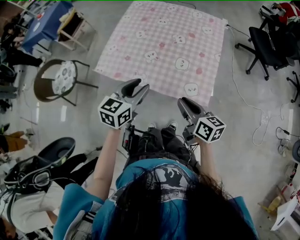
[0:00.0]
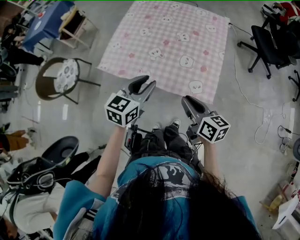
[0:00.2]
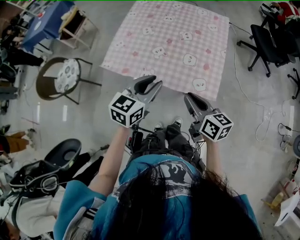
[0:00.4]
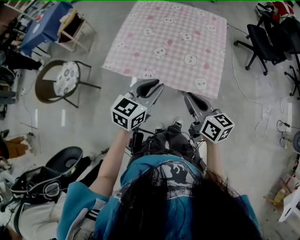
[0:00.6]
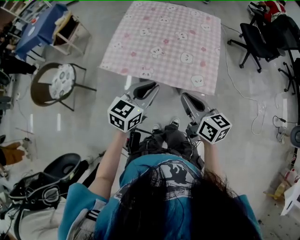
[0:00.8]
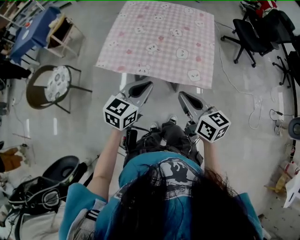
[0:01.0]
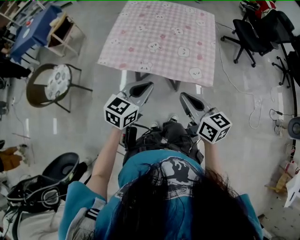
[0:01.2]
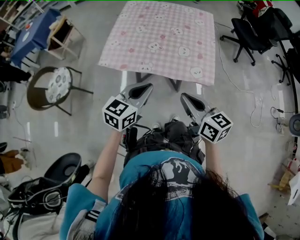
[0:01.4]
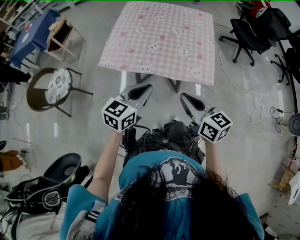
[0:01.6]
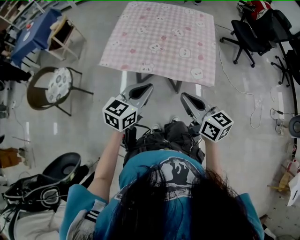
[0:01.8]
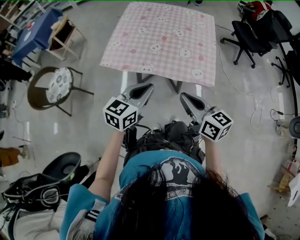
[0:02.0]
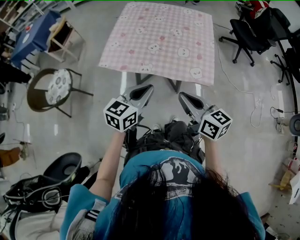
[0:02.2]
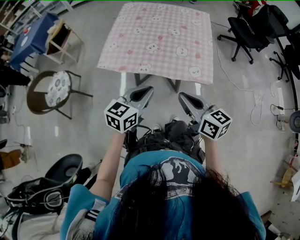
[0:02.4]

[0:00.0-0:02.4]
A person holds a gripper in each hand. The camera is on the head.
0:00.0 to 0:01.2: The left gripper moves backward, some 10 cm, and closes its fingers. The right gripper is displaced backward, to the left and upward by roughly 15 cm.
0:01.2 to 0:02.4: The grippers move only a little.

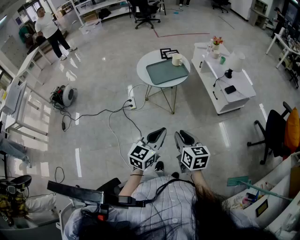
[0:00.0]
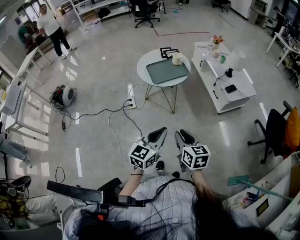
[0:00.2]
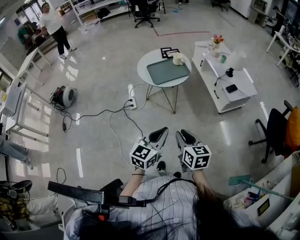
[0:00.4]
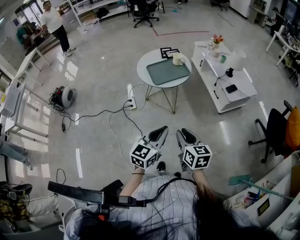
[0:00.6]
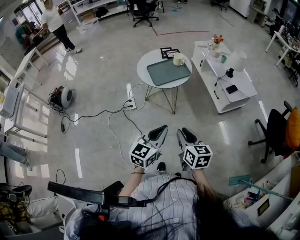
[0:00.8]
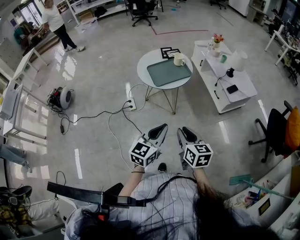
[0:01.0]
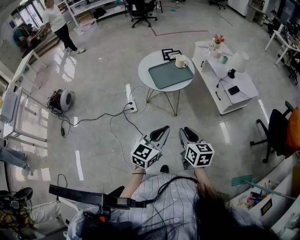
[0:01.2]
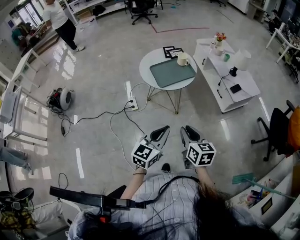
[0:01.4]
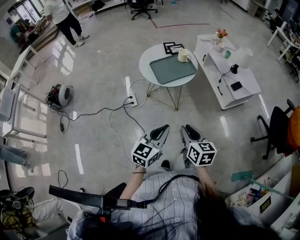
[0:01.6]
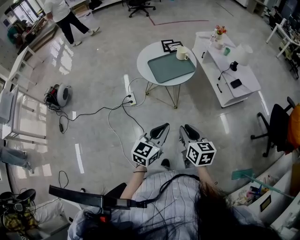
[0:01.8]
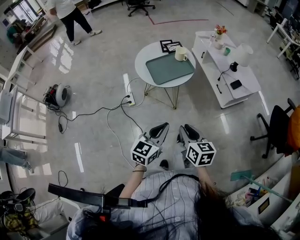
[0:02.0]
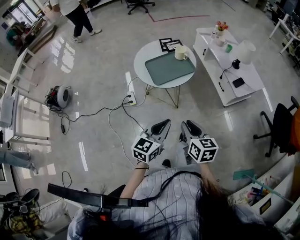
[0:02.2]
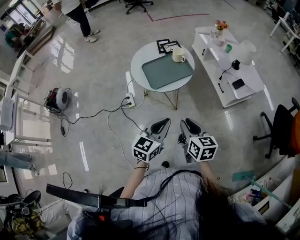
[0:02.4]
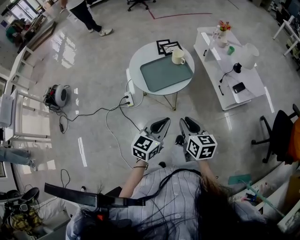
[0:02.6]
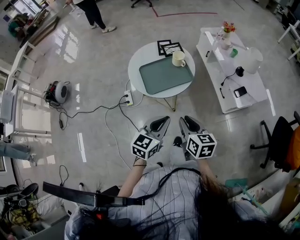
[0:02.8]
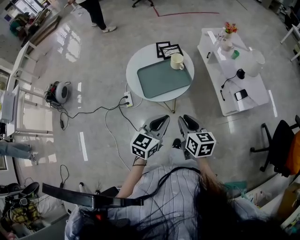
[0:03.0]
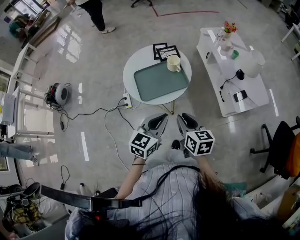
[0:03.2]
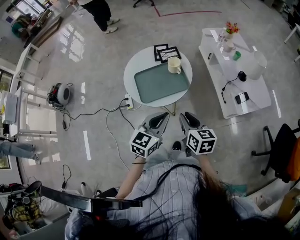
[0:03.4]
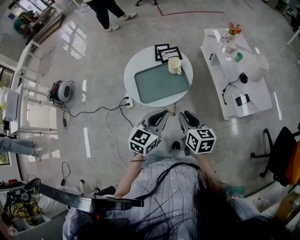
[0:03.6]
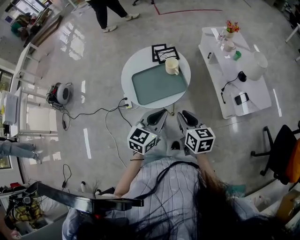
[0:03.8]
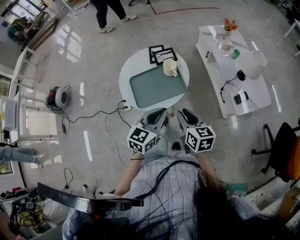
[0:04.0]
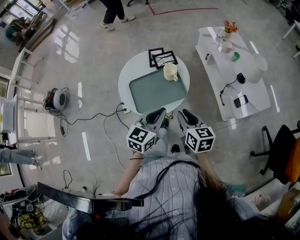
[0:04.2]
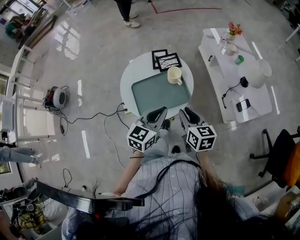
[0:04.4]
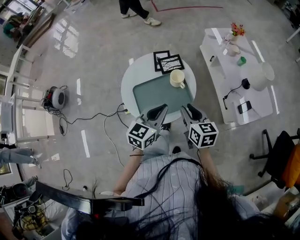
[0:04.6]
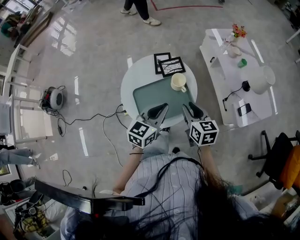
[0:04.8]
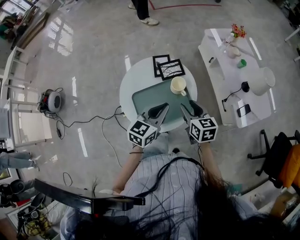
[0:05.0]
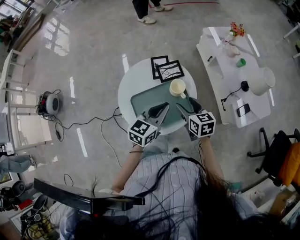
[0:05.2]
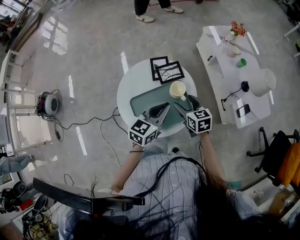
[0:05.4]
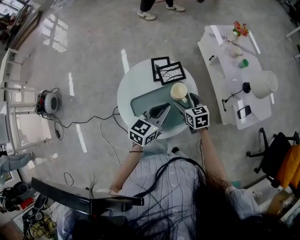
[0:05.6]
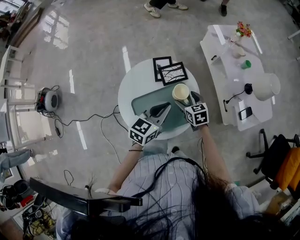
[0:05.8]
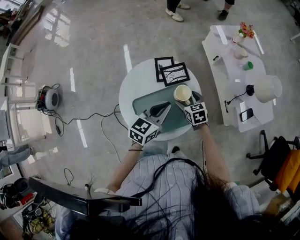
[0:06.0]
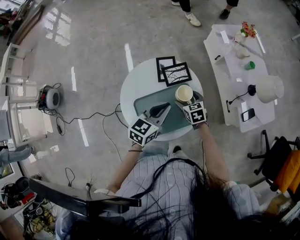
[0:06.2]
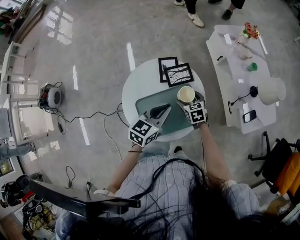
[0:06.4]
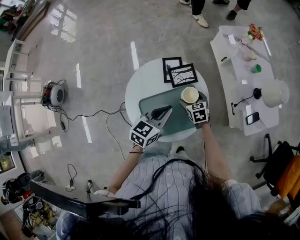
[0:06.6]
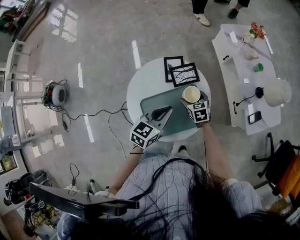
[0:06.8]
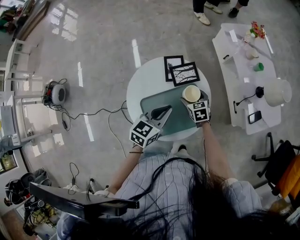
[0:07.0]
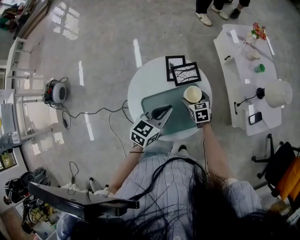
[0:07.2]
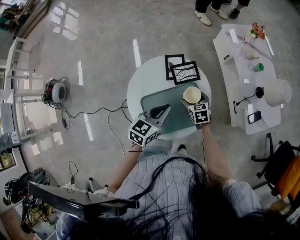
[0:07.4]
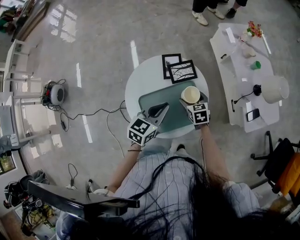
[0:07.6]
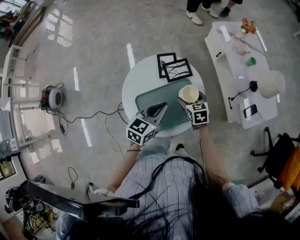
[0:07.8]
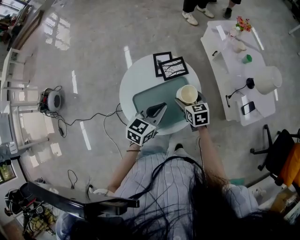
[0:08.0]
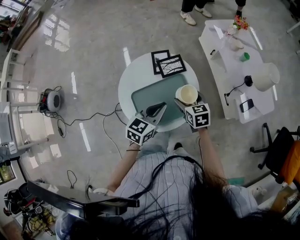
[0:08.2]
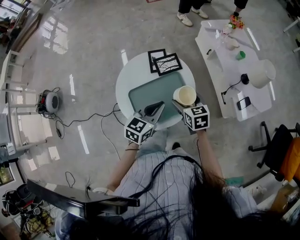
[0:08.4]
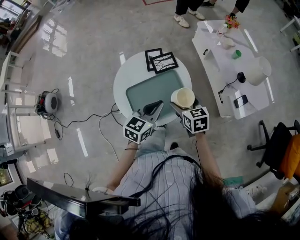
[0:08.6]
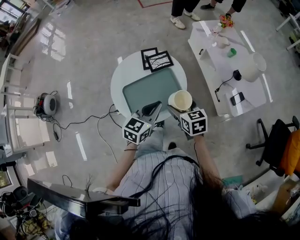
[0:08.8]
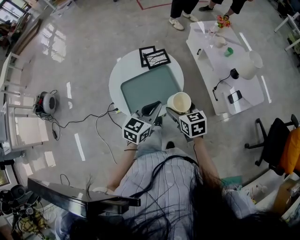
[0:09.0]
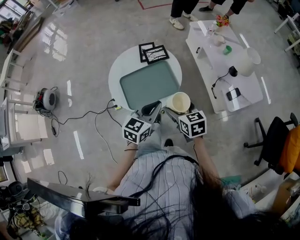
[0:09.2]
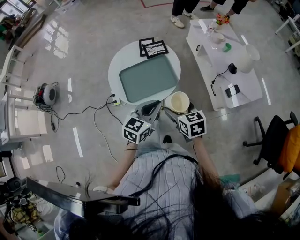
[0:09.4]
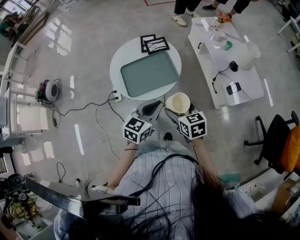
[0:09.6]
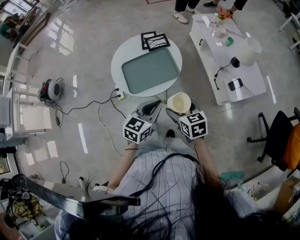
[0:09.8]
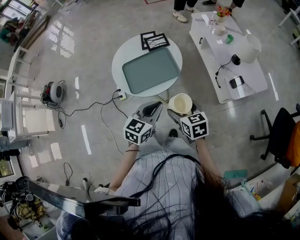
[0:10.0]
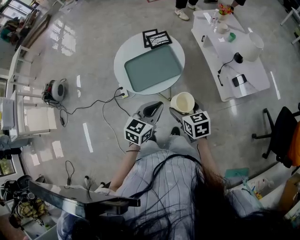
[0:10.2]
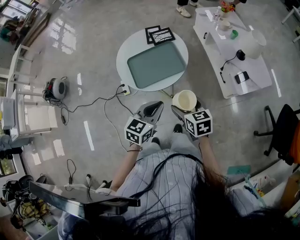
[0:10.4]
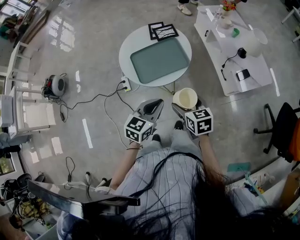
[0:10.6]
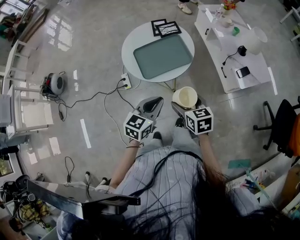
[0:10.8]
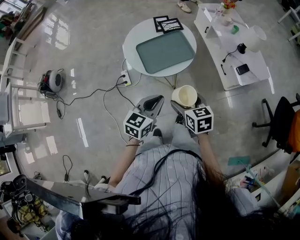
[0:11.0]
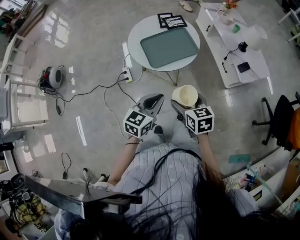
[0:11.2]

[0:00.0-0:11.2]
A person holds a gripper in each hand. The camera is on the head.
0:00.0 to 0:01.6: The two grippers go some 10 cm forward and to the left.
0:01.6 to 0:03.2: The two grippers go about 25 cm forward.
0:03.2 to 0:04.8: Both grippers travel together forward, approximately 20 cm.
0:04.8 to 0:06.4: The right gripper moves downward and forward, roughly 25 cm, rotates roughly 30 degrees, and opens its fingers. Meanwhile the left gripper goes roughly 10 cm forward and downward.
0:06.4 to 0:08.0: The right gripper is displaced upward by roughly 5 cm.
0:08.0 to 0:09.6: The left gripper heads backward and to the right, covering roughly 25 cm, while the right gripper goes approximately 25 cm backward.
0:09.6 to 0:11.2: The grippers both shift backward and to the left by some 20 cm.

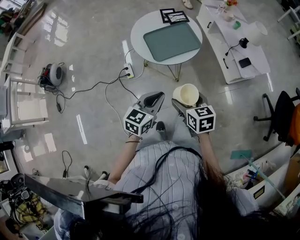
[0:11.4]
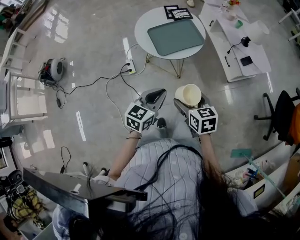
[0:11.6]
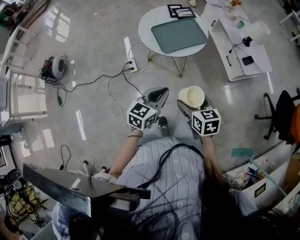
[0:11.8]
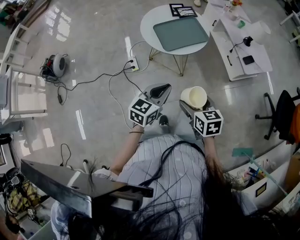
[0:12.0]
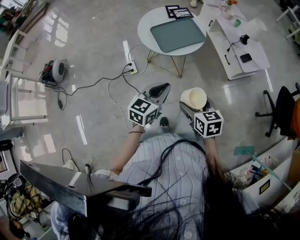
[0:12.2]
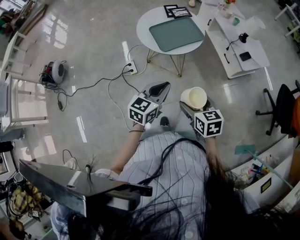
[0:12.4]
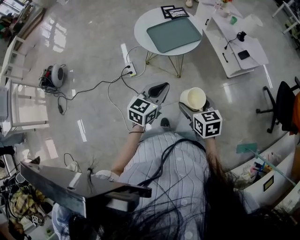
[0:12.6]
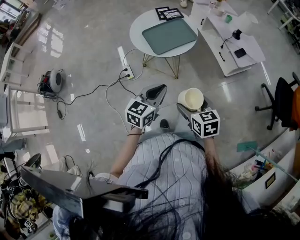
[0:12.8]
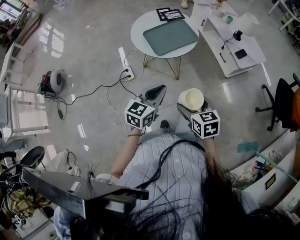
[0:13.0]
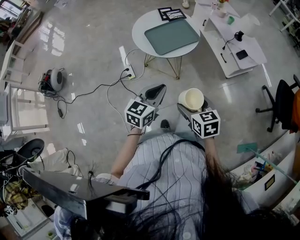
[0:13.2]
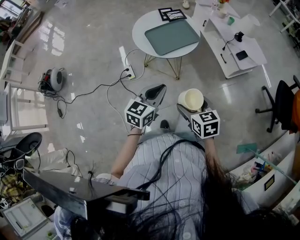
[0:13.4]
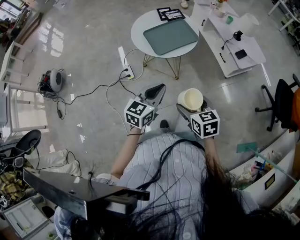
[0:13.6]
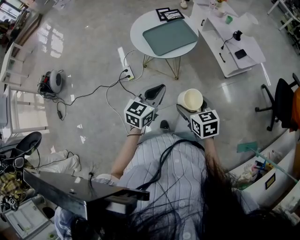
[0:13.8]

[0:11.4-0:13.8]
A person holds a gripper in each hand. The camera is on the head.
0:11.4 to 0:12.6: The right gripper goes some 10 cm backward.
0:12.6 to 0:13.8: Both grippers stay put.

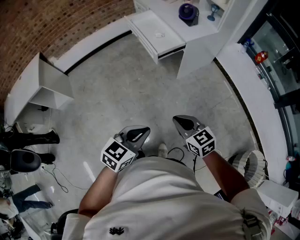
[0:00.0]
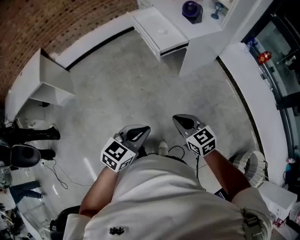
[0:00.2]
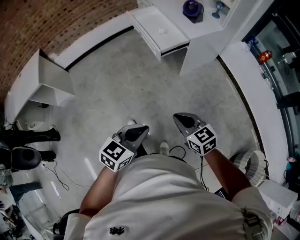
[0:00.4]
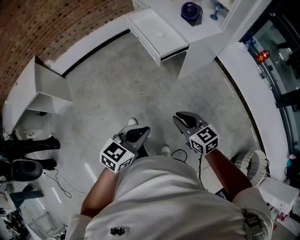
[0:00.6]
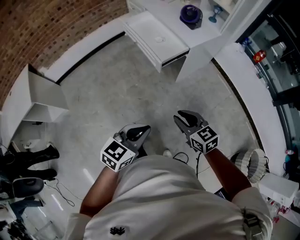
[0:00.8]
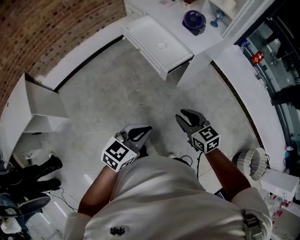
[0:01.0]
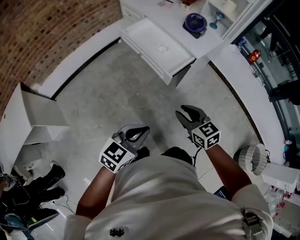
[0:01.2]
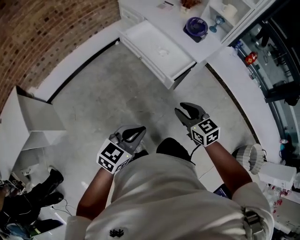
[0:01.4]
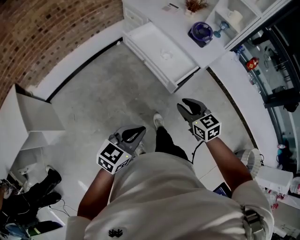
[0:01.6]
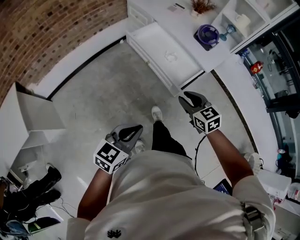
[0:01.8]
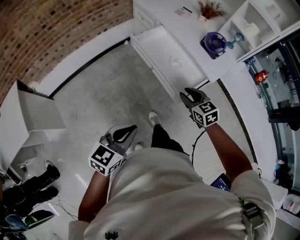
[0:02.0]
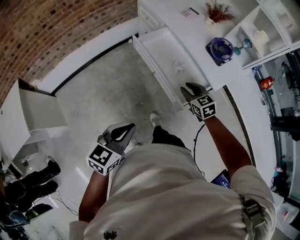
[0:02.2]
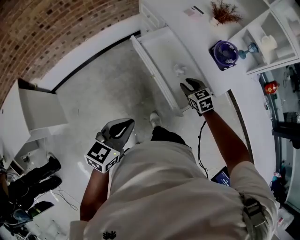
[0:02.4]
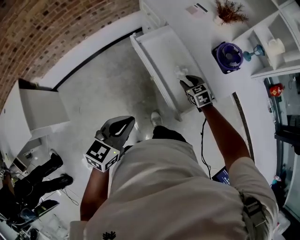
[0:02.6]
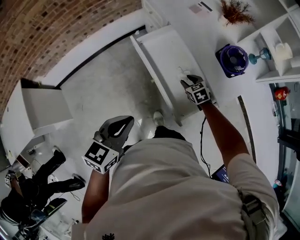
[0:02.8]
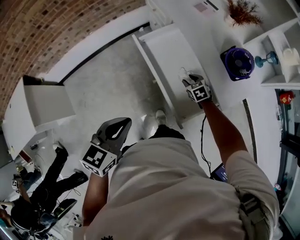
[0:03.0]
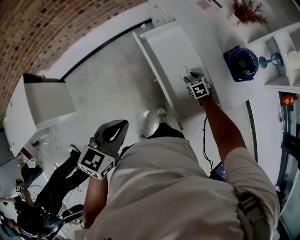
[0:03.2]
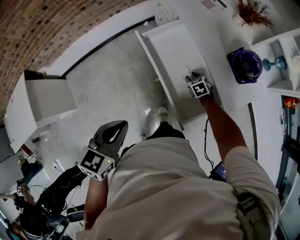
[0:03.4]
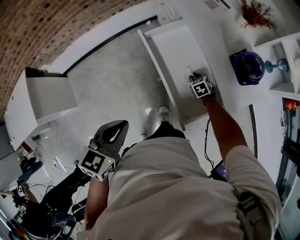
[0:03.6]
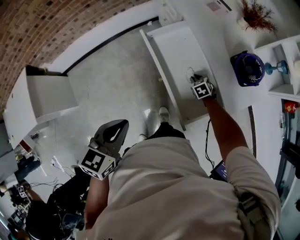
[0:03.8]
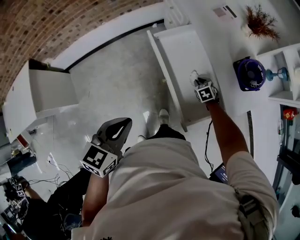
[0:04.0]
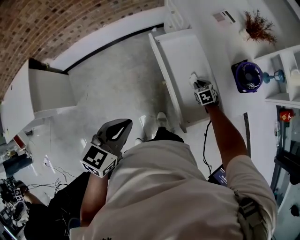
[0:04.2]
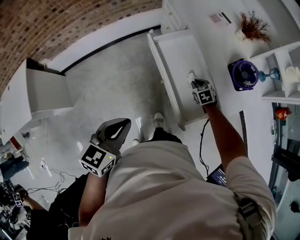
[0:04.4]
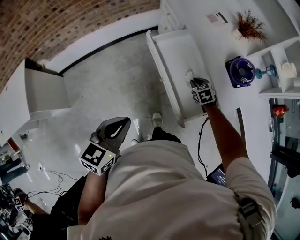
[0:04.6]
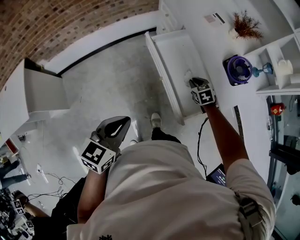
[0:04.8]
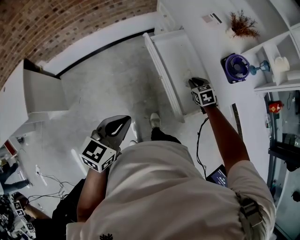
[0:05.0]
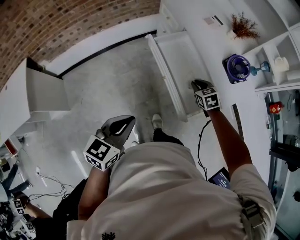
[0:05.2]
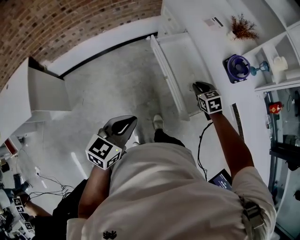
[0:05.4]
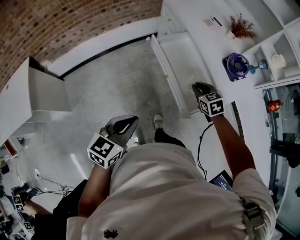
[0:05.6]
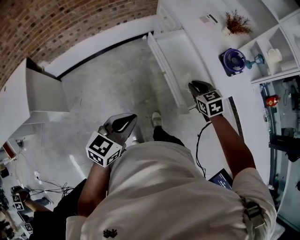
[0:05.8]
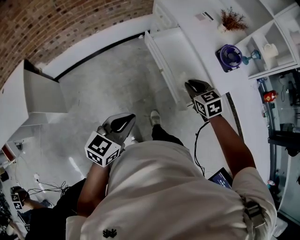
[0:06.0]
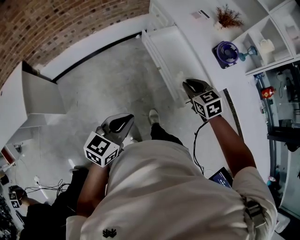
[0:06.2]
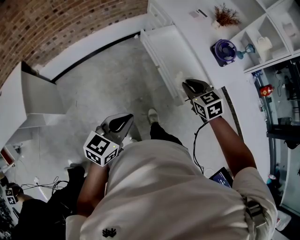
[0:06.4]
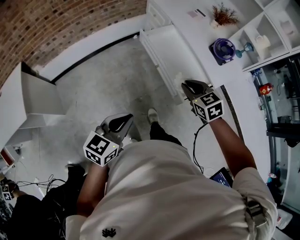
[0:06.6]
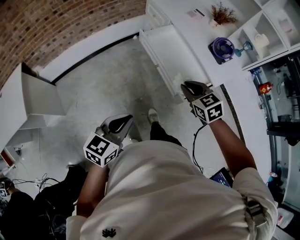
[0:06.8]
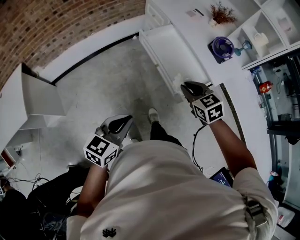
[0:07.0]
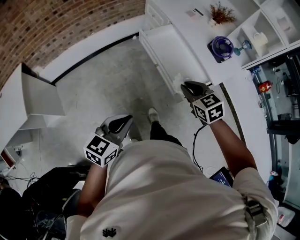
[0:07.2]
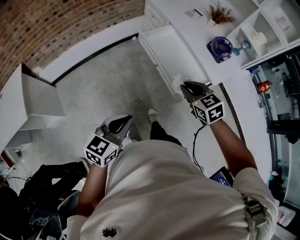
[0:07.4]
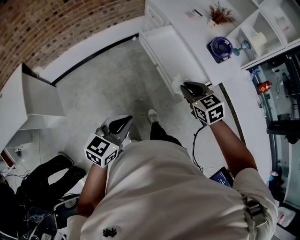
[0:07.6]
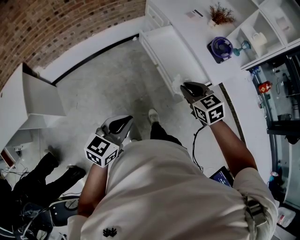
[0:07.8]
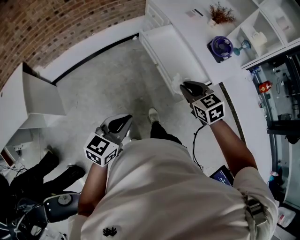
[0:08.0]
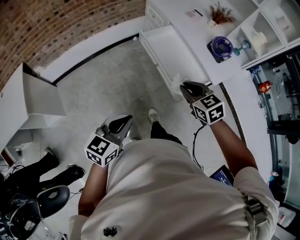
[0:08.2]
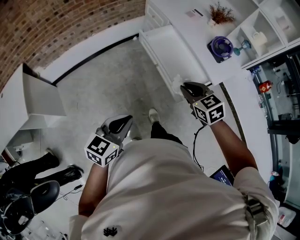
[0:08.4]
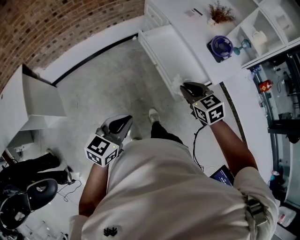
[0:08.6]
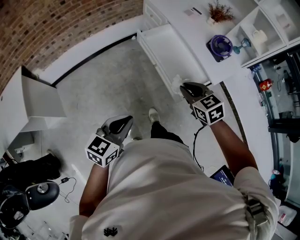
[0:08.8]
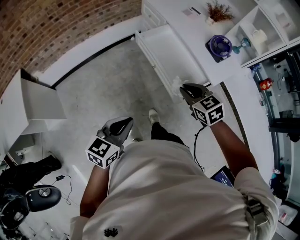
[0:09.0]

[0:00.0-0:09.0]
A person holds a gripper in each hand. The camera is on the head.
0:00.0 to 0:01.6: The right gripper heads forward and to the left, covering some 40 cm, and opens up, while the left gripper shifts approximately 40 cm to the left and forward.
0:01.6 to 0:03.0: The right gripper moves forward and downward, about 50 cm, and changes its angle by approximately 30 degrees; the left gripper travels forward by approximately 30 cm, and rotates about 20 degrees.
0:03.0 to 0:04.4: The right gripper moves some 5 cm downward and comes back, and closes; the left gripper shifts by some 5 cm.
0:04.4 to 0:06.0: The left gripper shifts approximately 15 cm backward; the right gripper moves upward and backward, roughly 30 cm.
0:06.0 to 0:07.6: The left gripper goes roughly 5 cm backward, while the right gripper travels backward and upward by about 10 cm.
0:07.6 to 0:09.0: There are only small adjustments of the grippers.
